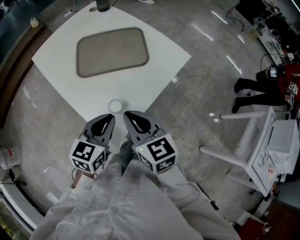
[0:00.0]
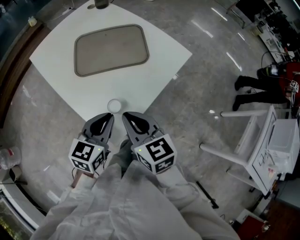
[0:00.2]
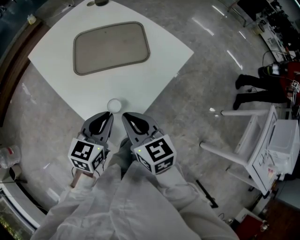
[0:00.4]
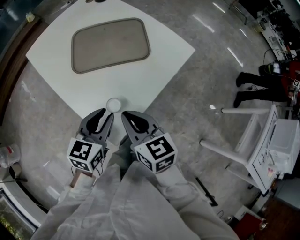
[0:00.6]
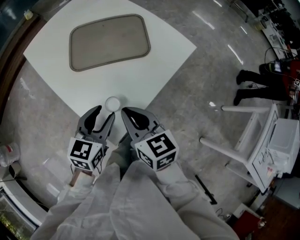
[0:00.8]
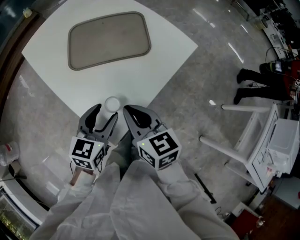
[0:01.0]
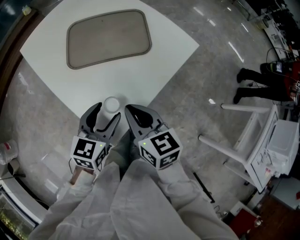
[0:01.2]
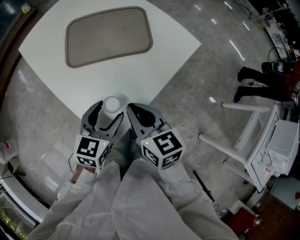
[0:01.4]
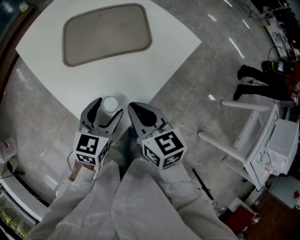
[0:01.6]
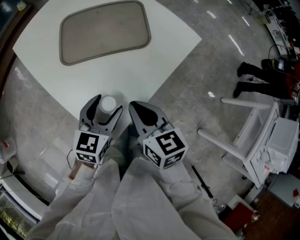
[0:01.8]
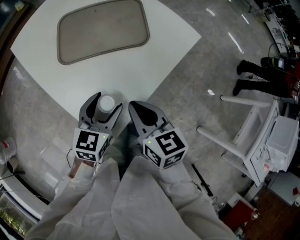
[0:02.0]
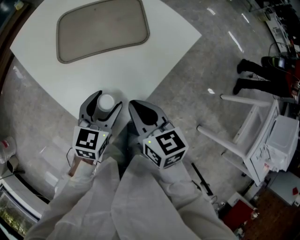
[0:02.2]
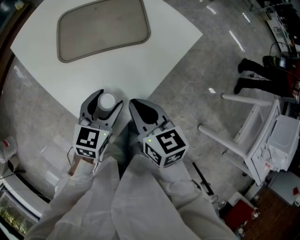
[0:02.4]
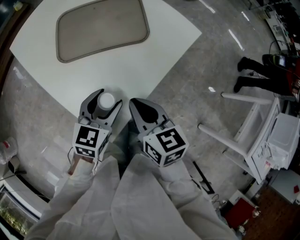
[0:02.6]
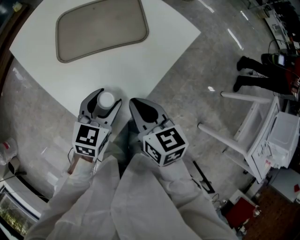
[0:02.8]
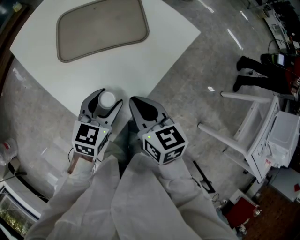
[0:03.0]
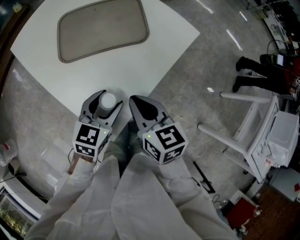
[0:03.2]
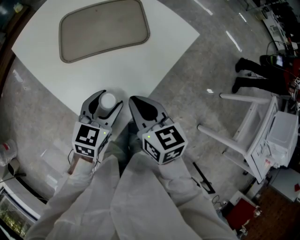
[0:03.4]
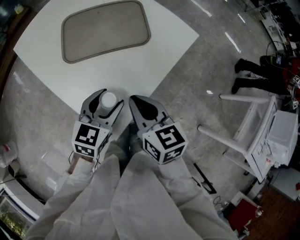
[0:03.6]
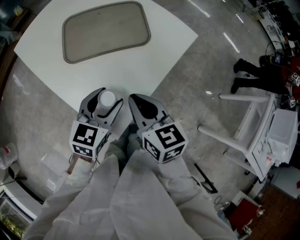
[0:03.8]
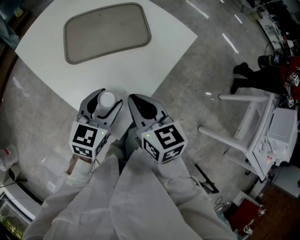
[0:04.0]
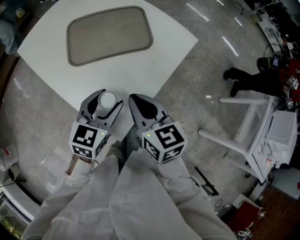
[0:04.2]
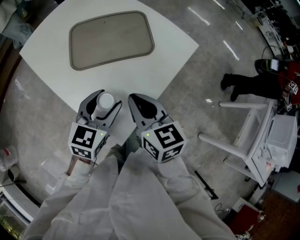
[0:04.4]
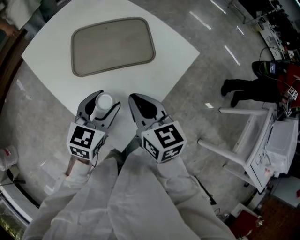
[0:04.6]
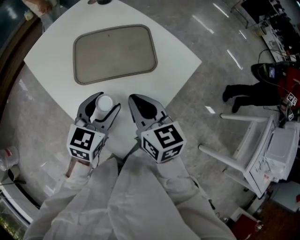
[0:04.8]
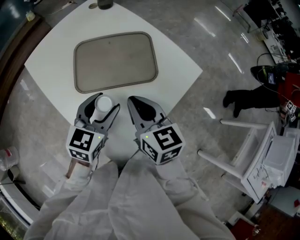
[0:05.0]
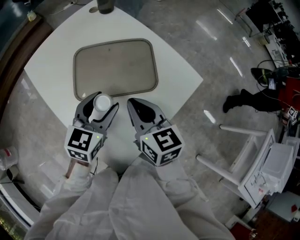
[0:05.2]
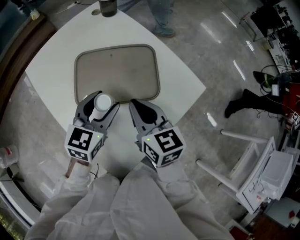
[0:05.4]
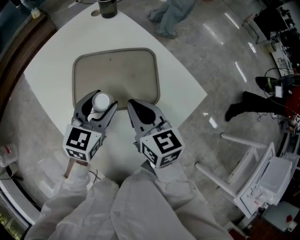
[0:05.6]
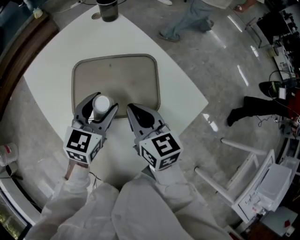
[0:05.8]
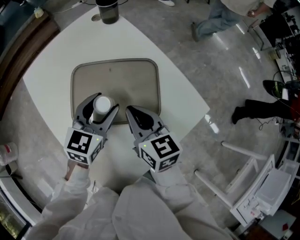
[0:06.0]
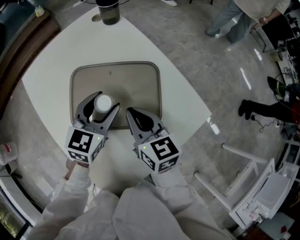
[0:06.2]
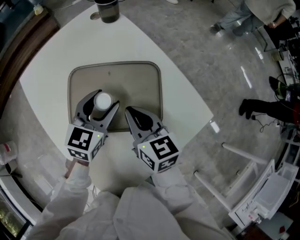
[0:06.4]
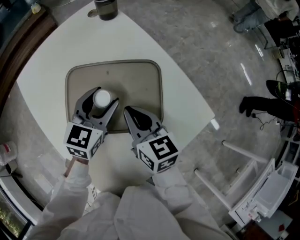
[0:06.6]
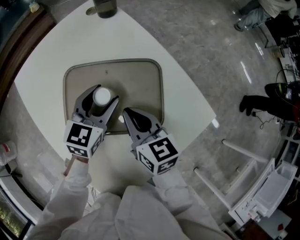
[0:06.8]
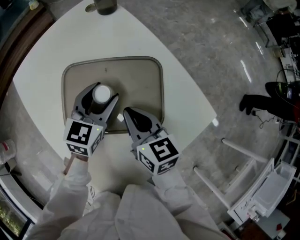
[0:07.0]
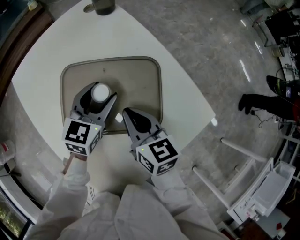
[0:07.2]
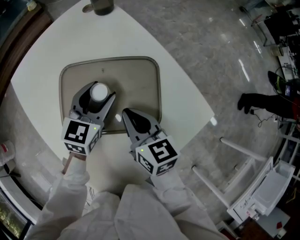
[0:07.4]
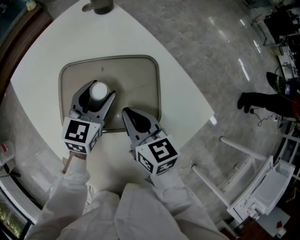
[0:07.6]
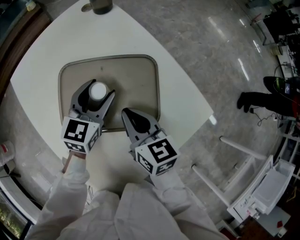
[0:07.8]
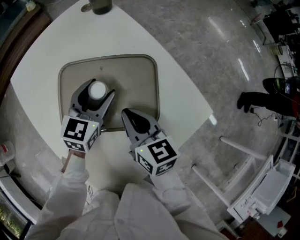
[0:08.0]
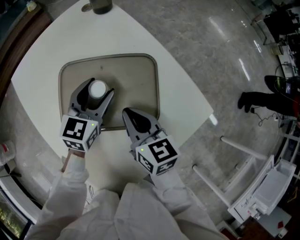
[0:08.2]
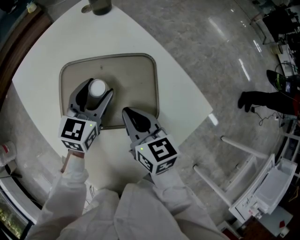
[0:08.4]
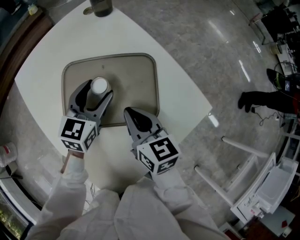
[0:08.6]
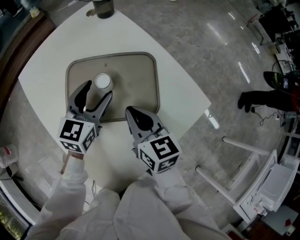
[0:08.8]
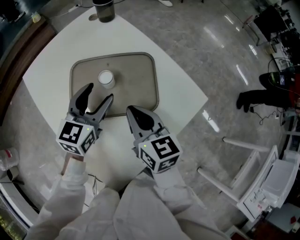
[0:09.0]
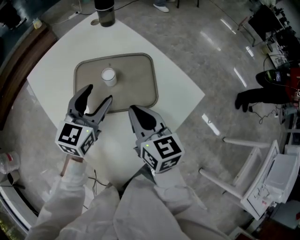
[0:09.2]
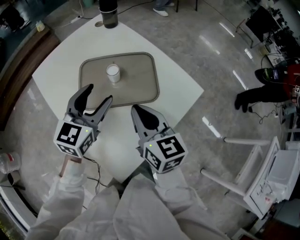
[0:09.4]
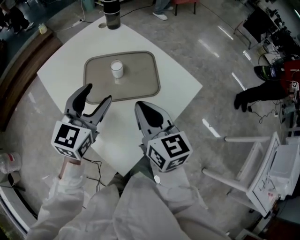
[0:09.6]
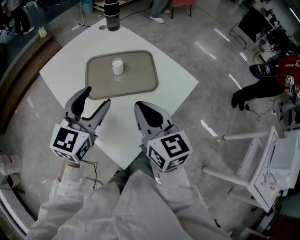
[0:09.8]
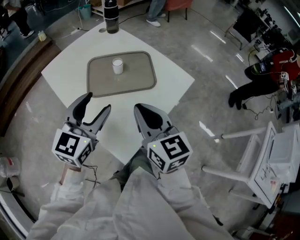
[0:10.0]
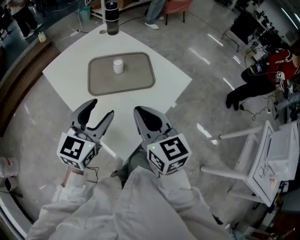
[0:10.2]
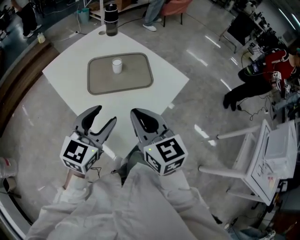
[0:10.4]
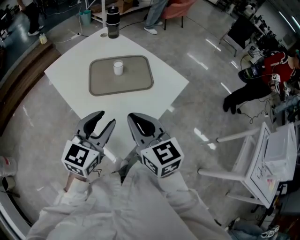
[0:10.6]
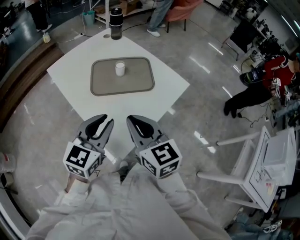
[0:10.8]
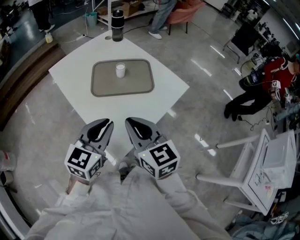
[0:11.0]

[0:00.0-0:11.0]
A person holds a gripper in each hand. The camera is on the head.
0:00.0 to 0:01.6: The right gripper is displaced downward by approximately 5 cm. The left gripper goes approximately 10 cm downward and forward, and opens its fingers.
0:01.6 to 0:03.2: The grippers stay close to where they were, moving slightly.
0:03.2 to 0:04.8: The right gripper moves forward and upward, about 10 cm, while the left gripper heads upward and forward, covering roughly 10 cm.
0:04.8 to 0:06.2: Both grippers travel together forward, about 20 cm.
0:06.2 to 0:07.8: The left gripper moves approximately 5 cm.
0:07.8 to 0:09.4: Both grippers travel together backward and upward, some 20 cm.
0:09.4 to 0:11.0: The left gripper shifts about 25 cm backward, and closes up. Meanwhile the right gripper is displaced backward and upward by some 20 cm.

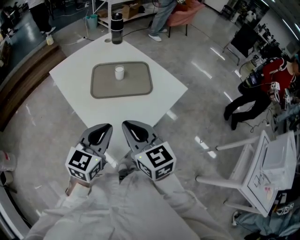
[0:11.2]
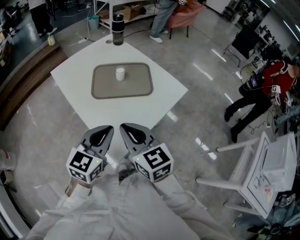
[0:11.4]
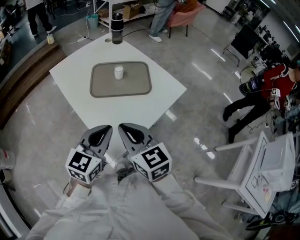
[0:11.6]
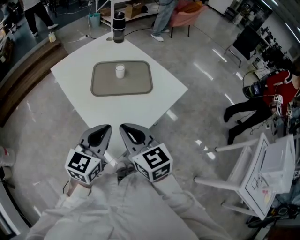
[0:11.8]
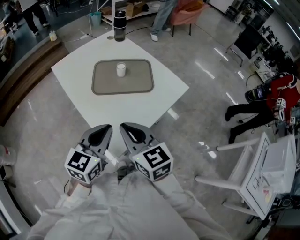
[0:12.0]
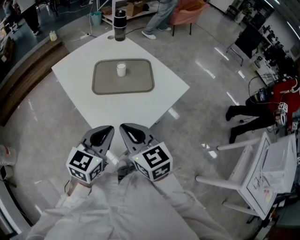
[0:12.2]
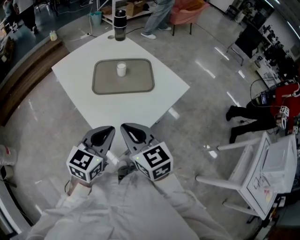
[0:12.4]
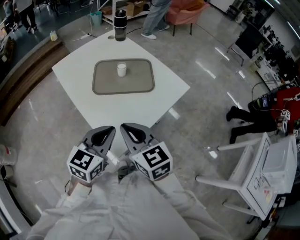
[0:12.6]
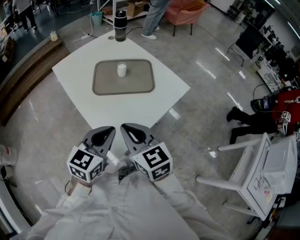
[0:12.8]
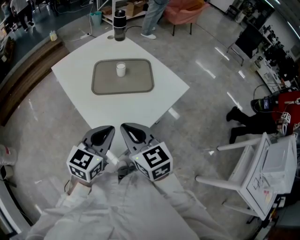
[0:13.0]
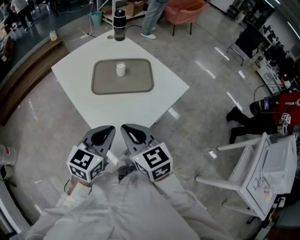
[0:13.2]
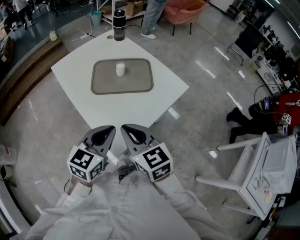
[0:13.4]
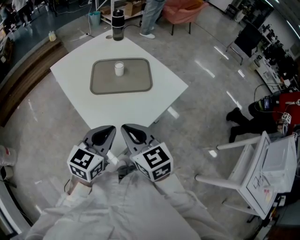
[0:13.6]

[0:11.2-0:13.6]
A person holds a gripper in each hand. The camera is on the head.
0:11.2 to 0:12.4: The grippers move only a little.
0:12.4 to 0:13.6: Both grippers stay put.

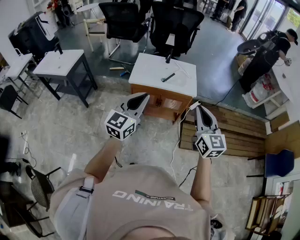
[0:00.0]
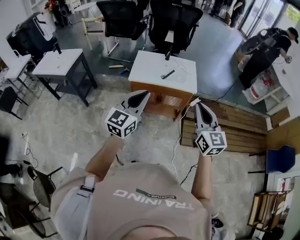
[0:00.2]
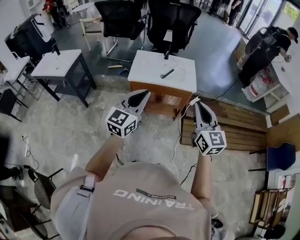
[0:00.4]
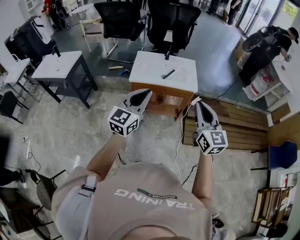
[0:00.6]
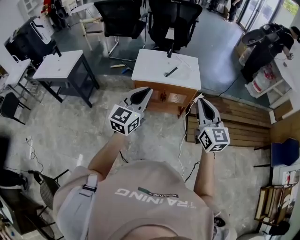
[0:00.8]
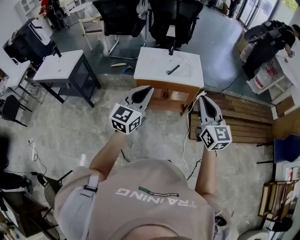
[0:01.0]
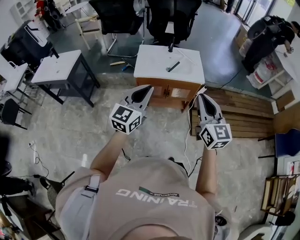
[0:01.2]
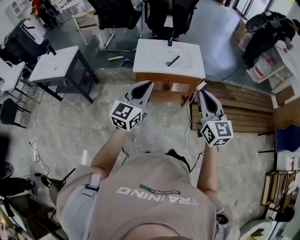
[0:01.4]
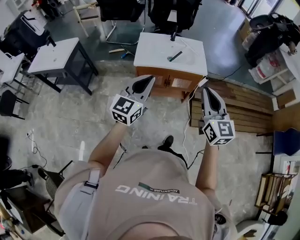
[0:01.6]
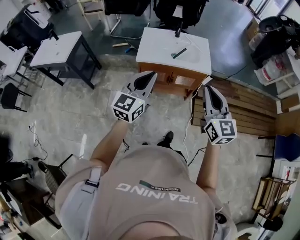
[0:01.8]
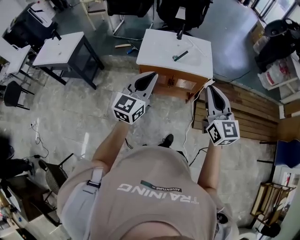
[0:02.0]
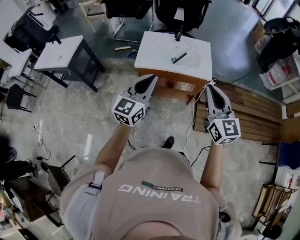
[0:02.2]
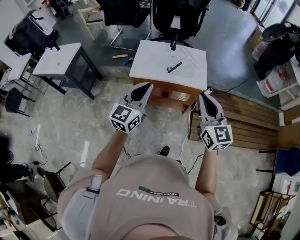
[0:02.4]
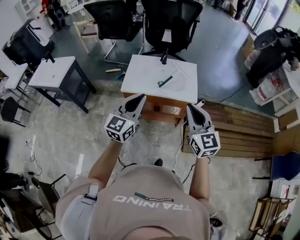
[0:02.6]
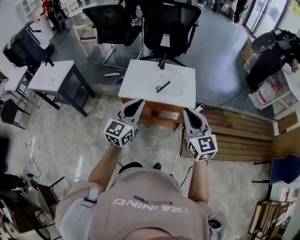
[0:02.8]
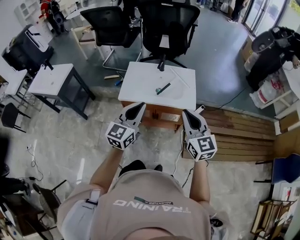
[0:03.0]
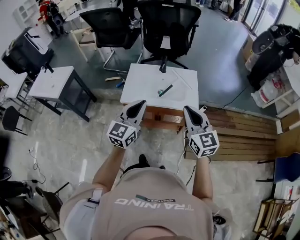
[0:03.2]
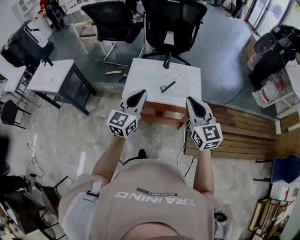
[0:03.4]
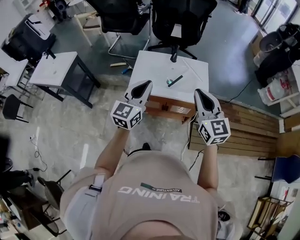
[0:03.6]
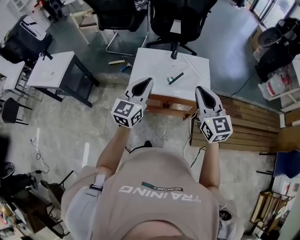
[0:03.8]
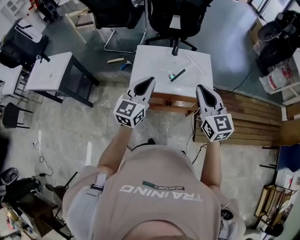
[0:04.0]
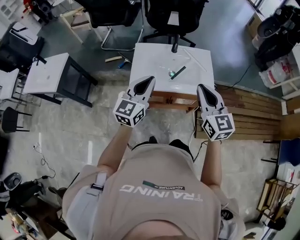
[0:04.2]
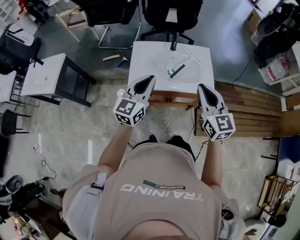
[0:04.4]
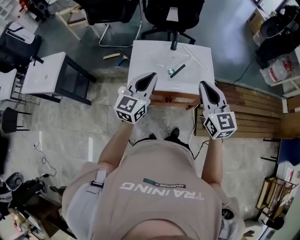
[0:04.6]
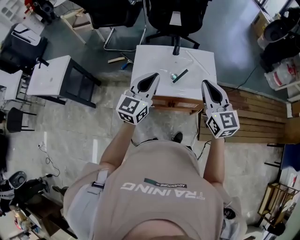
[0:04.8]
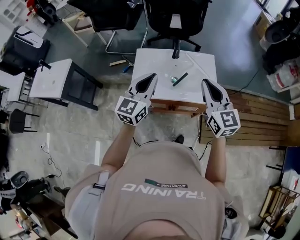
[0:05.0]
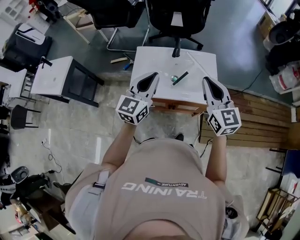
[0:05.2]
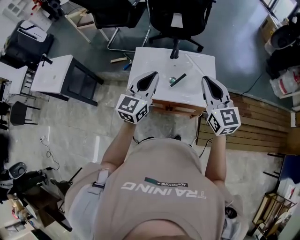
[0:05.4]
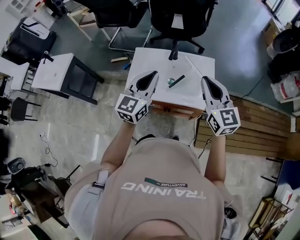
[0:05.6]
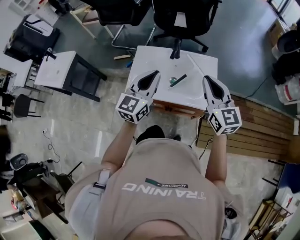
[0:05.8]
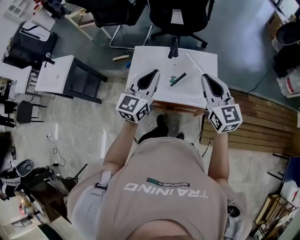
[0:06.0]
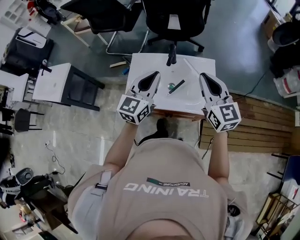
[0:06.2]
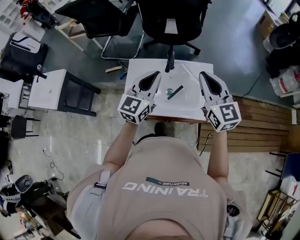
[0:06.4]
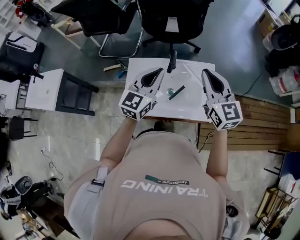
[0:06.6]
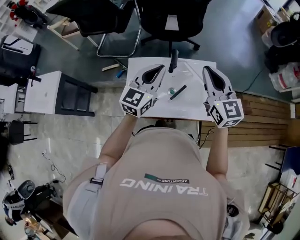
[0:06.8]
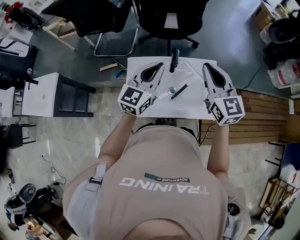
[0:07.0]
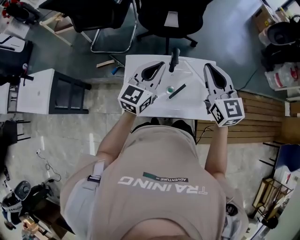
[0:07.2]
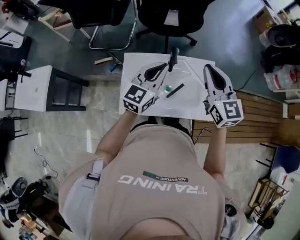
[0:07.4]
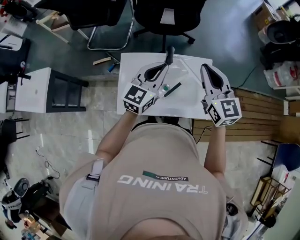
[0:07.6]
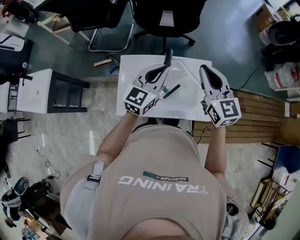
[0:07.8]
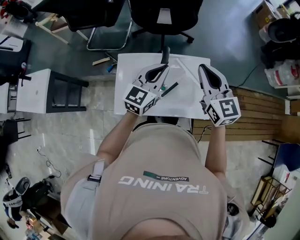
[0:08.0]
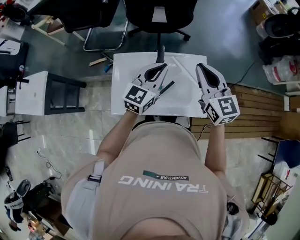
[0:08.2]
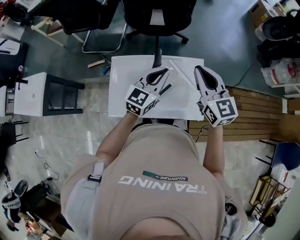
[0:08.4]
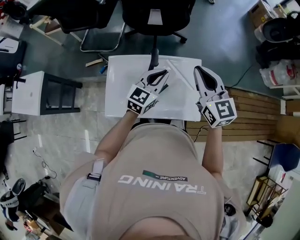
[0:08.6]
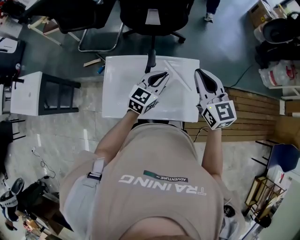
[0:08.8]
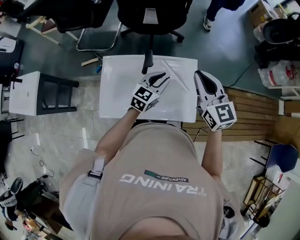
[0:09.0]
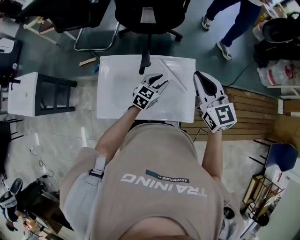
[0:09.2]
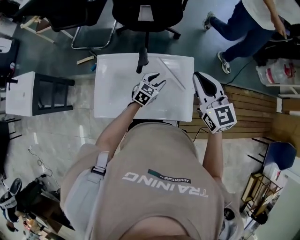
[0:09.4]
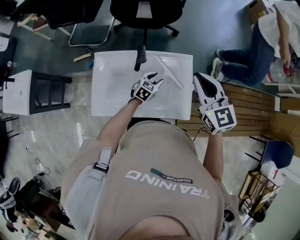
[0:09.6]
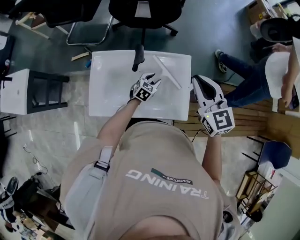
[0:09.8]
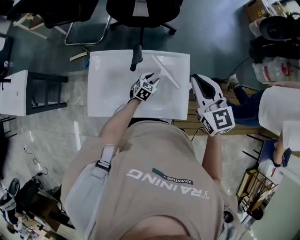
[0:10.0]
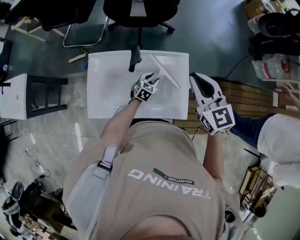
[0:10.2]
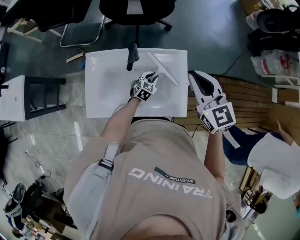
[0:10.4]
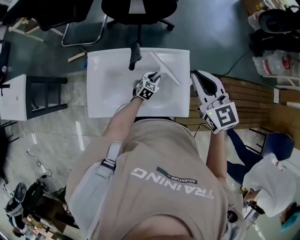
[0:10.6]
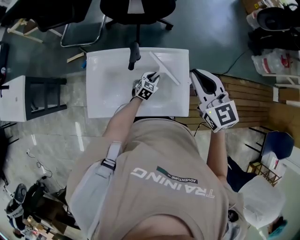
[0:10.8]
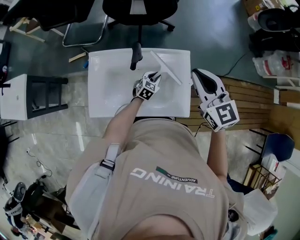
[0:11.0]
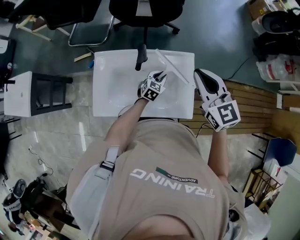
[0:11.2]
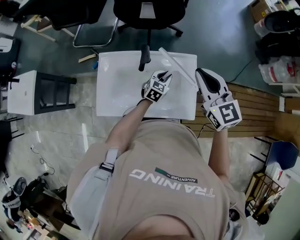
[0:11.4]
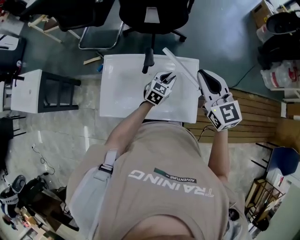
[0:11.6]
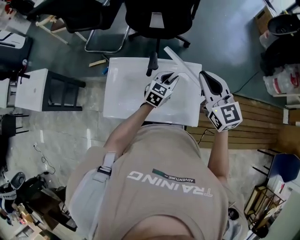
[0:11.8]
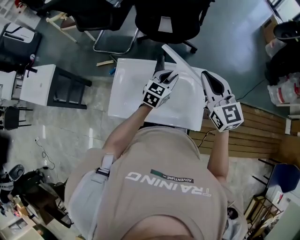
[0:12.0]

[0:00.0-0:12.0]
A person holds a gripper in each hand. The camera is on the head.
0:00.0 to 0:01.6: The two grippers go about 5 cm to the left.
0:01.6 to 0:03.0: The right gripper shifts some 15 cm forward. Meanwhile the left gripper heads forward and to the right, covering some 15 cm.
0:03.0 to 0:04.4: Both grippers move forward and to the left, roughly 15 cm.
0:04.4 to 0:06.0: Both grippers travel together forward and to the right, roughly 15 cm.
0:06.0 to 0:07.6: The grippers both shift forward by approximately 15 cm.
0:07.6 to 0:09.0: The left gripper goes about 15 cm downward and to the right, while the right gripper goes approximately 10 cm to the right.
0:09.0 to 0:10.4: The left gripper is displaced downward by approximately 25 cm, and changes its angle by approximately 20 degrees.
0:10.4 to 0:12.0: The right gripper moves roughly 5 cm; the left gripper shifts approximately 25 cm upward.
